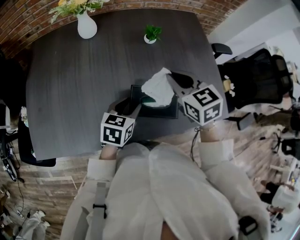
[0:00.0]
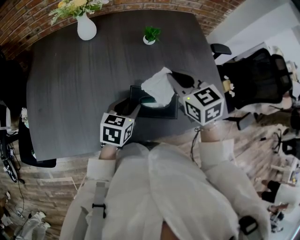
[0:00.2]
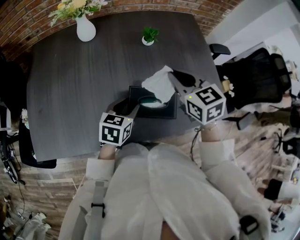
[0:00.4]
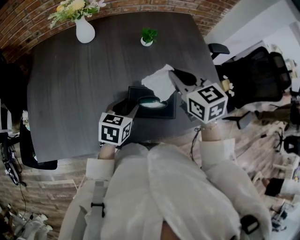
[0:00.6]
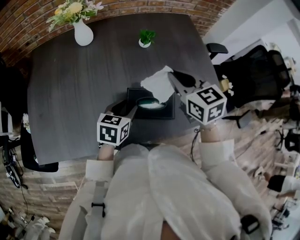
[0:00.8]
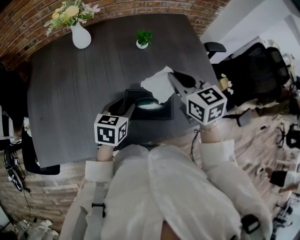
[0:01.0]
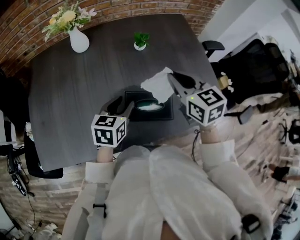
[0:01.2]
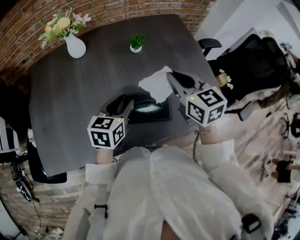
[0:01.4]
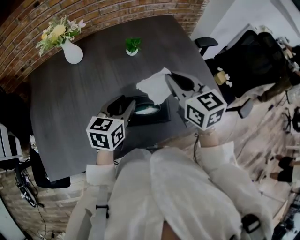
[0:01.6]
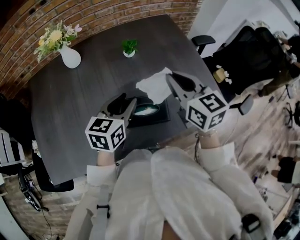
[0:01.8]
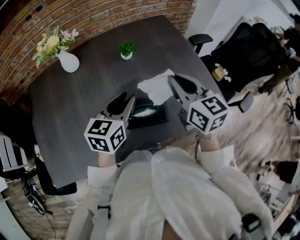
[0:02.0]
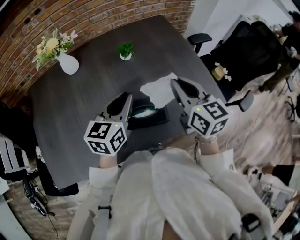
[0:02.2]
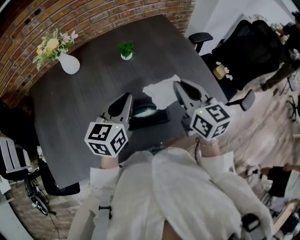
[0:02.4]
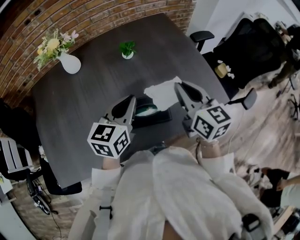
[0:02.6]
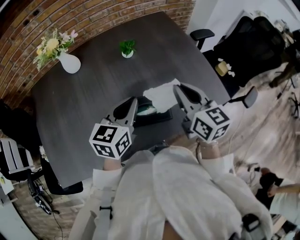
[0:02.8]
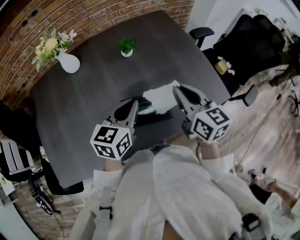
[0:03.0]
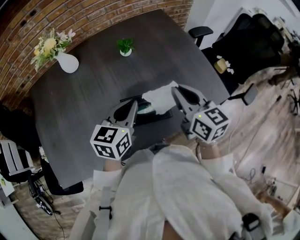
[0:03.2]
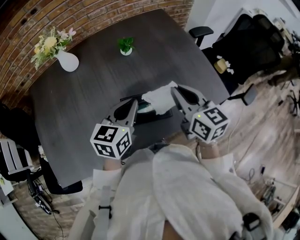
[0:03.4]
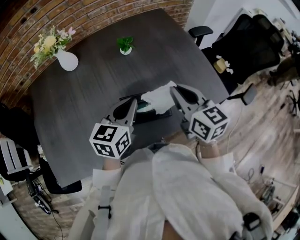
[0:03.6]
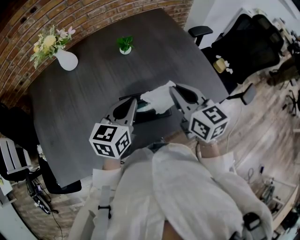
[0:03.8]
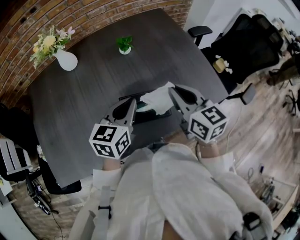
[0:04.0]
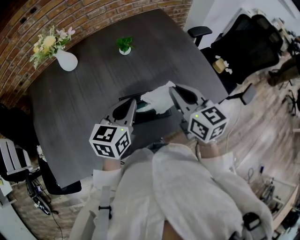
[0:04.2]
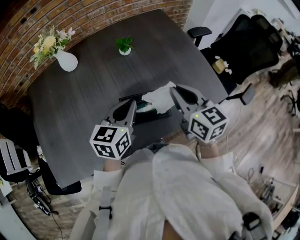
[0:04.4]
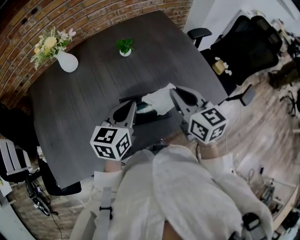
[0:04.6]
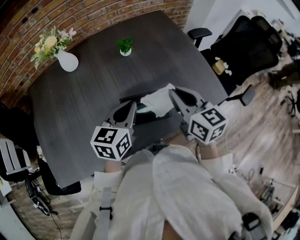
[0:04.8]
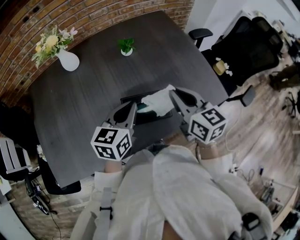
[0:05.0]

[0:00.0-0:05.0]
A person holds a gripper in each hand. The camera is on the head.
0:00.0 to 0:01.6: The right gripper moves upward and to the right, about 10 cm, and swivels roughly 20 degrees; the left gripper moves upward, some 10 cm.
0:01.6 to 0:03.4: The right gripper changes place by approximately 5 cm. The left gripper closes its fingers.
0:03.4 to 0:05.0: Both grippers stay about where they are.

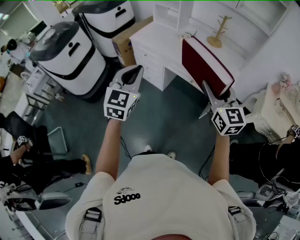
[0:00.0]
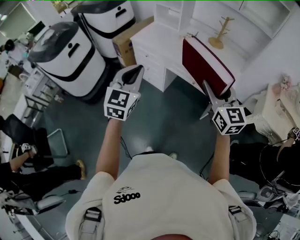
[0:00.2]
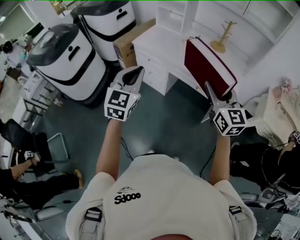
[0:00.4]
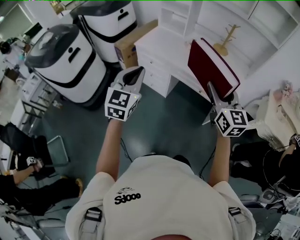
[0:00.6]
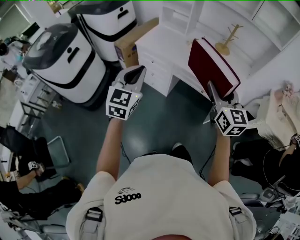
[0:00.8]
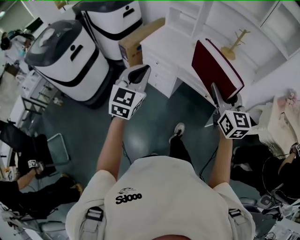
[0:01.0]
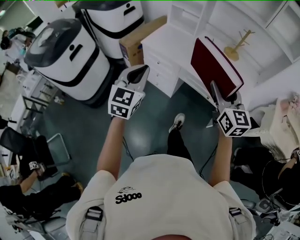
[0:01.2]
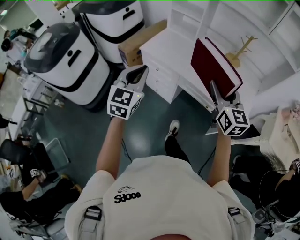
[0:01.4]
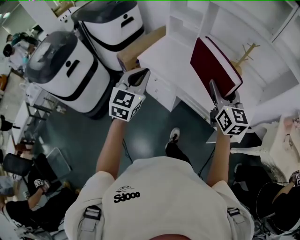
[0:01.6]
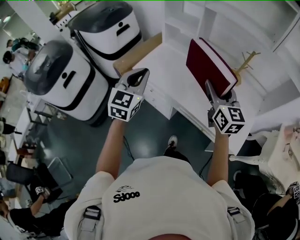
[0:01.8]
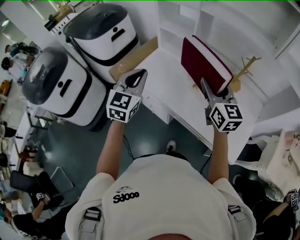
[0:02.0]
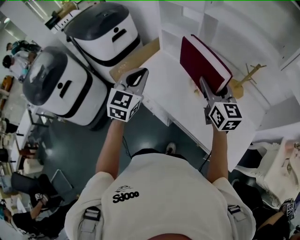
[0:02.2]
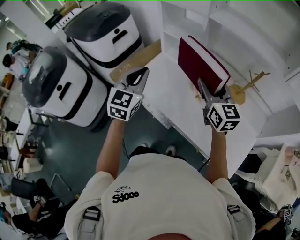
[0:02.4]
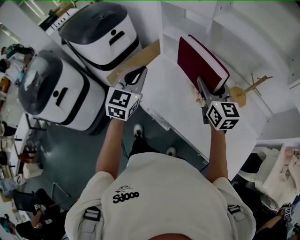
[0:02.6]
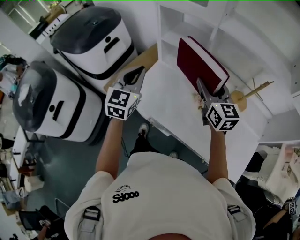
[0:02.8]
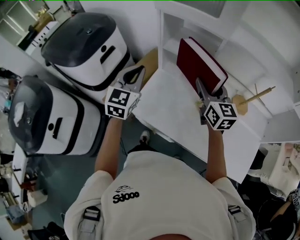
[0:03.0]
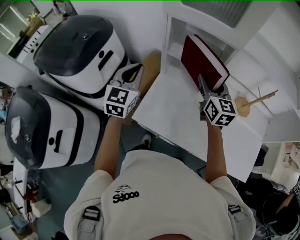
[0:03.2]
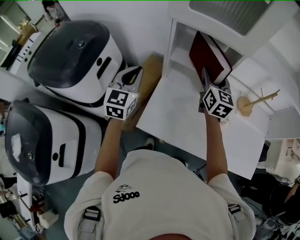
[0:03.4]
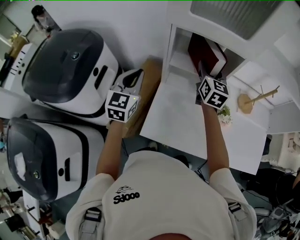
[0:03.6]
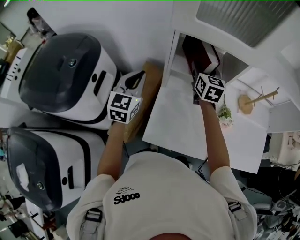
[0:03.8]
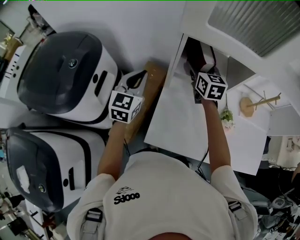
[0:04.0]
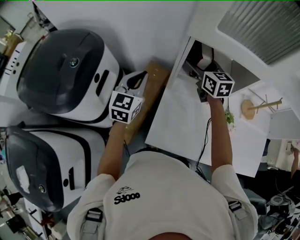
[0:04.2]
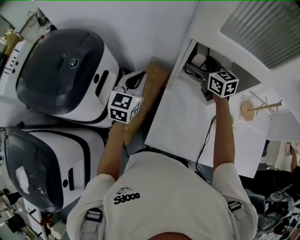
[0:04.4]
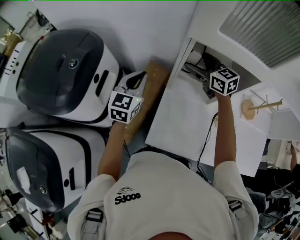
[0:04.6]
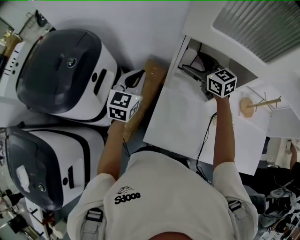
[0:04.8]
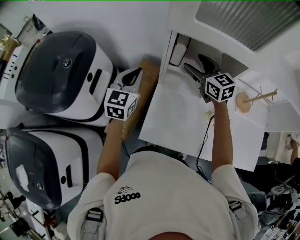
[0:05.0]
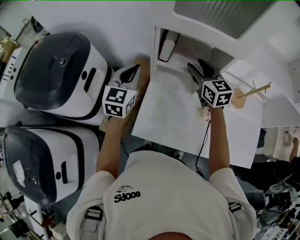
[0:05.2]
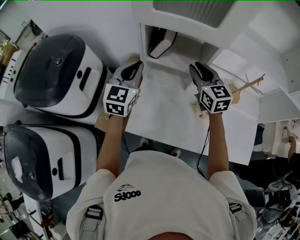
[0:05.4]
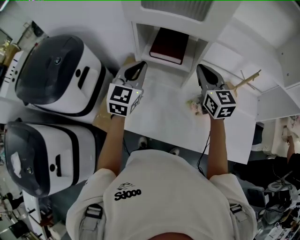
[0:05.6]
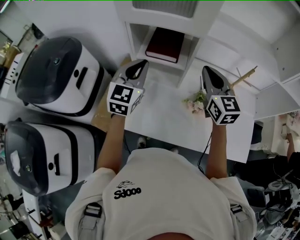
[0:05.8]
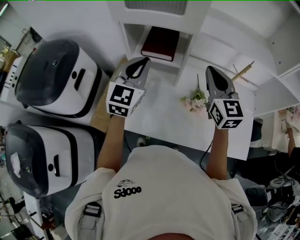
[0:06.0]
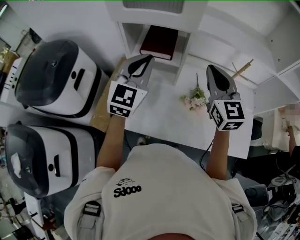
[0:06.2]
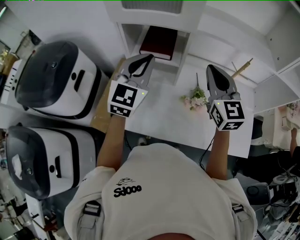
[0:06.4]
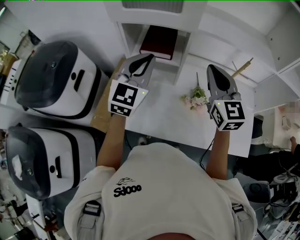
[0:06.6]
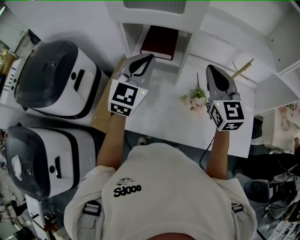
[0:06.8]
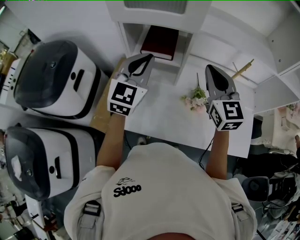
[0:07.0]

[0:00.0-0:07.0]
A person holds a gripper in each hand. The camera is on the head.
0:00.0 to 0:01.4: The grippers both shift forward and to the left by approximately 25 cm.
0:01.4 to 0:02.8: Both grippers are carried forward, roughly 40 cm.
0:02.8 to 0:04.2: The left gripper shifts by some 30 cm, and swivels approximately 20 degrees. Meanwhile the right gripper ends up some 35 cm from where it was, and opens its fingers.
0:04.2 to 0:05.6: The left gripper moves to the right, backward and upward, approximately 20 cm. The right gripper shifts some 25 cm backward and to the right, and closes its fingers.
0:05.6 to 0:07.0: The left gripper is displaced to the right and upward by about 10 cm; the right gripper moves backward, upward and to the right, approximately 10 cm.

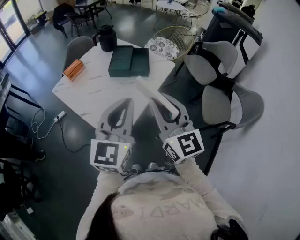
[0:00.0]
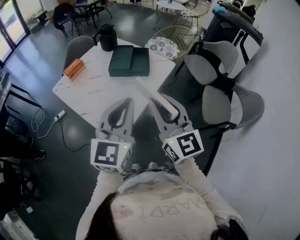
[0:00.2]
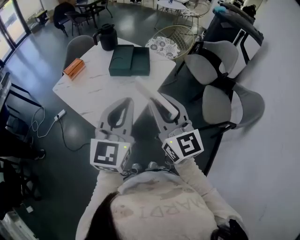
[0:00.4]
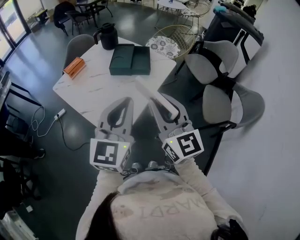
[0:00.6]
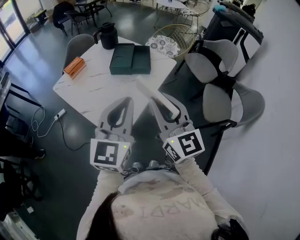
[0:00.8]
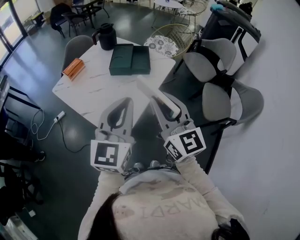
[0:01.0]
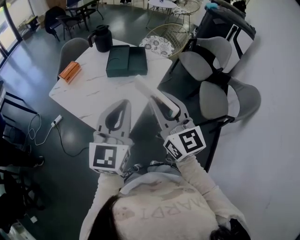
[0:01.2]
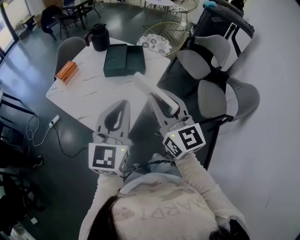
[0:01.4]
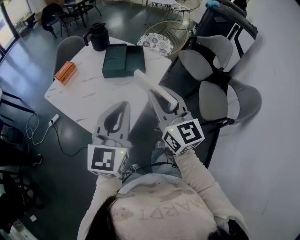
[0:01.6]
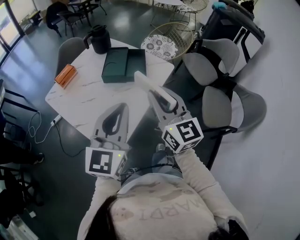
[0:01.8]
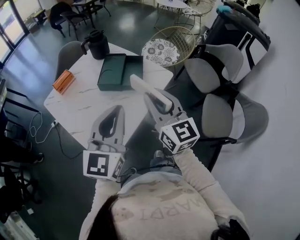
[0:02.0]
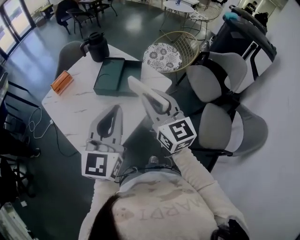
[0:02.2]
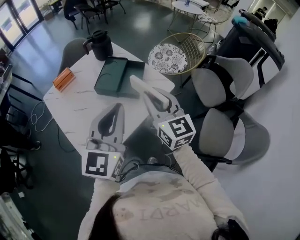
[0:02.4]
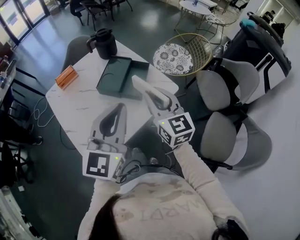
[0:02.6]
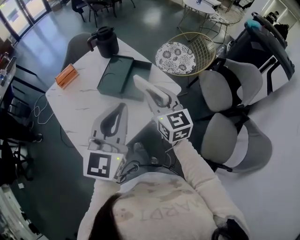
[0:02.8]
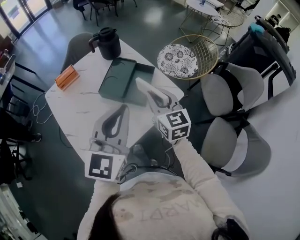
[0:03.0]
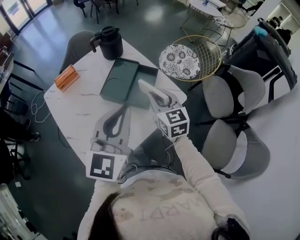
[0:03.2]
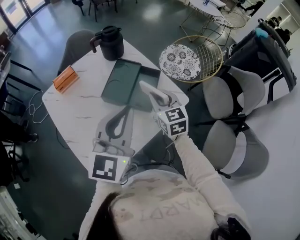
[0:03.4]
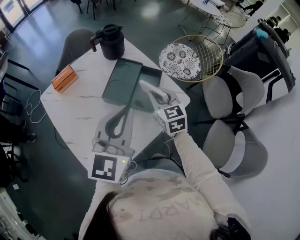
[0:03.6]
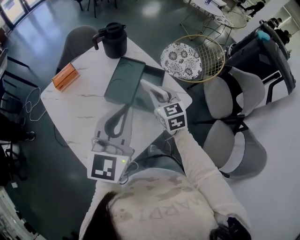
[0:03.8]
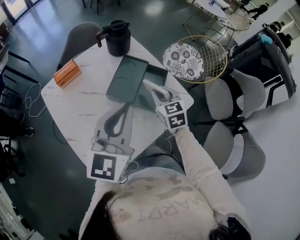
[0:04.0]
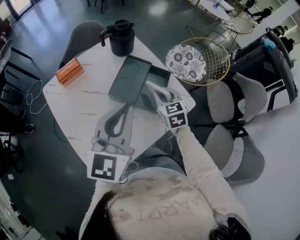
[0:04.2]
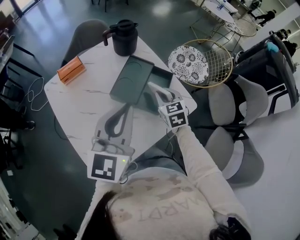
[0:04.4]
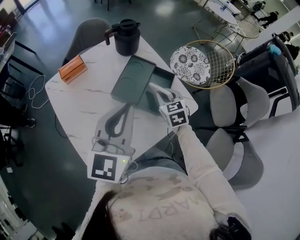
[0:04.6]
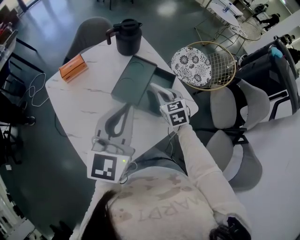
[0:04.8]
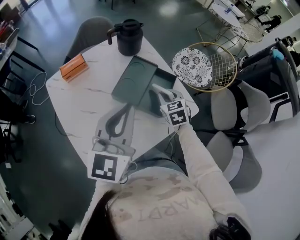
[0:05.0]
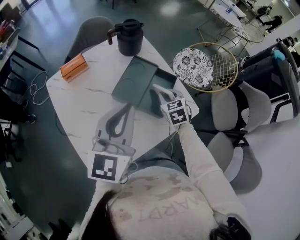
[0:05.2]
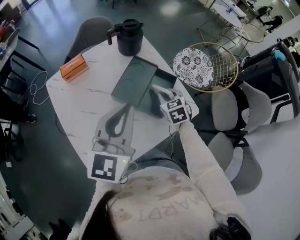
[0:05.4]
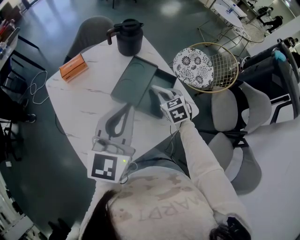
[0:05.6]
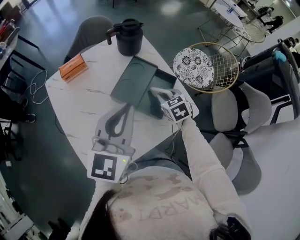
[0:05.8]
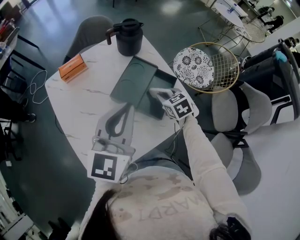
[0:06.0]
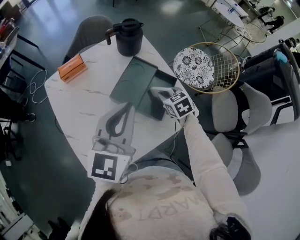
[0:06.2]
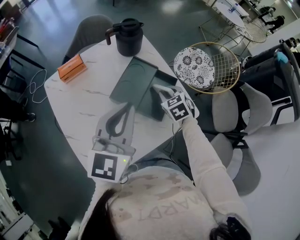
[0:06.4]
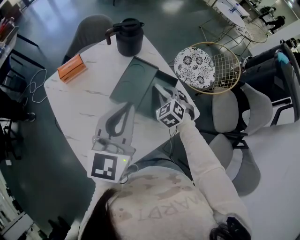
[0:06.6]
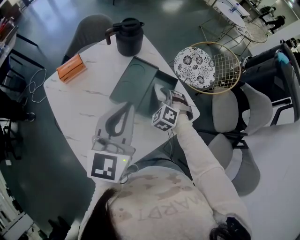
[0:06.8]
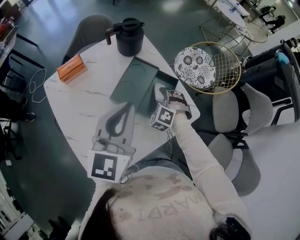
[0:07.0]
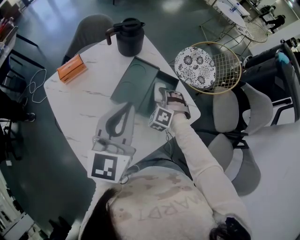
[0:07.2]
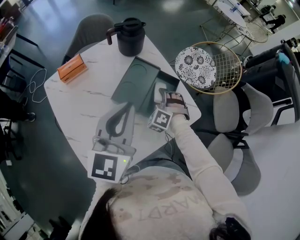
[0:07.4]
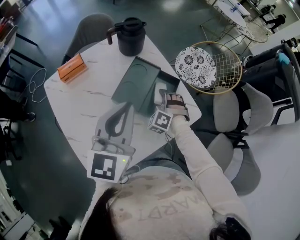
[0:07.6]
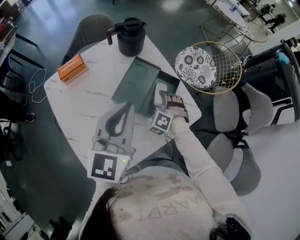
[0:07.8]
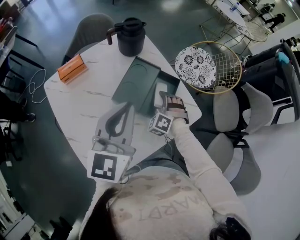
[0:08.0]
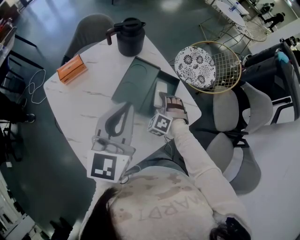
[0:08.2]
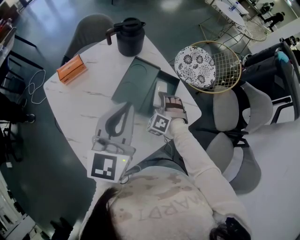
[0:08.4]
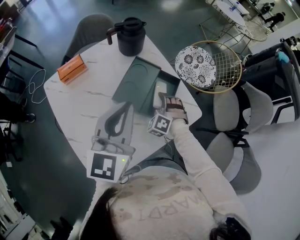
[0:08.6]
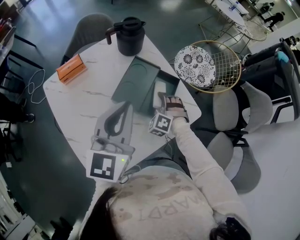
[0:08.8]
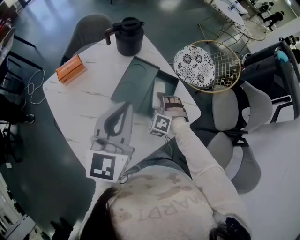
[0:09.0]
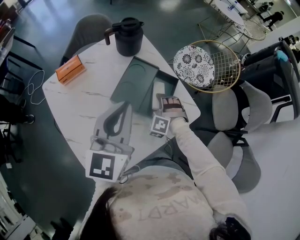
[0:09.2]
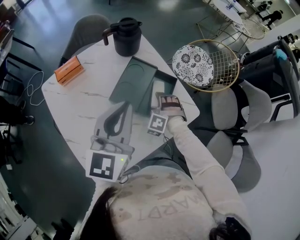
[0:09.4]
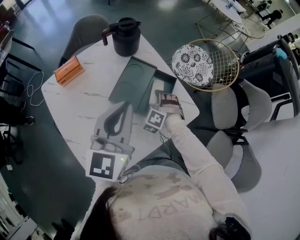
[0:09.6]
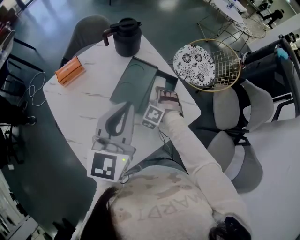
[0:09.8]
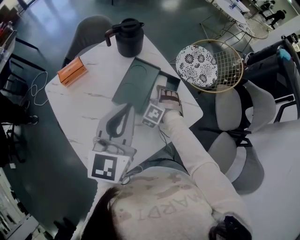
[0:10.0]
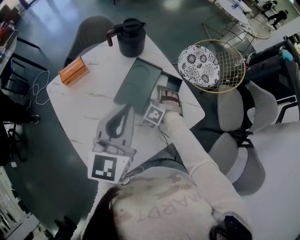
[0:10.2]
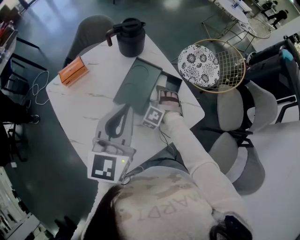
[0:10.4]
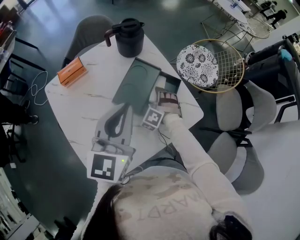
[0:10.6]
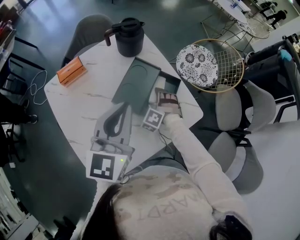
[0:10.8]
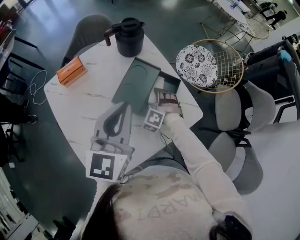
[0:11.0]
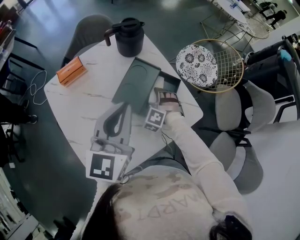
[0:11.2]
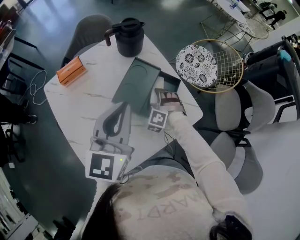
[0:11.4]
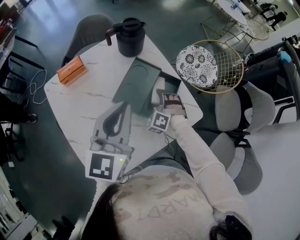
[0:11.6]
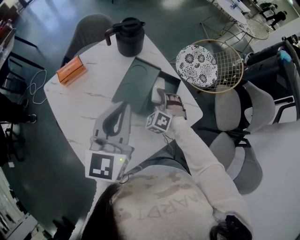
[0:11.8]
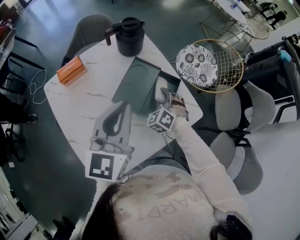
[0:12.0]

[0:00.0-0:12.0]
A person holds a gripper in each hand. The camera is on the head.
0:00.0 to 0:01.6: The right gripper travels forward by approximately 5 cm.
0:01.6 to 0:03.0: The right gripper goes approximately 30 cm forward and downward, and rotates approximately 20 degrees; the left gripper is displaced forward and to the right by roughly 25 cm.
0:03.0 to 0:04.4: The left gripper goes roughly 10 cm forward and to the left, while the right gripper travels downward and forward by approximately 15 cm, and rotates some 30 degrees.
0:04.4 to 0:06.0: The right gripper changes place by some 5 cm, and changes its angle by approximately 20 degrees.
0:06.0 to 0:07.6: The right gripper twists approximately 50 degrees counterclockwise, seen from behind.
0:07.6 to 0:10.4: There are only small adjustments of the grippers.
0:10.4 to 0:12.0: The right gripper turns by some 20 degrees, and closes.
